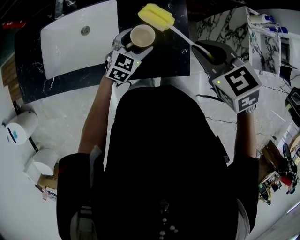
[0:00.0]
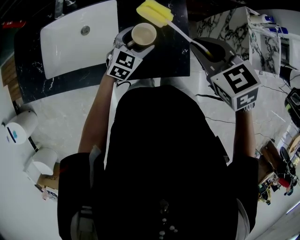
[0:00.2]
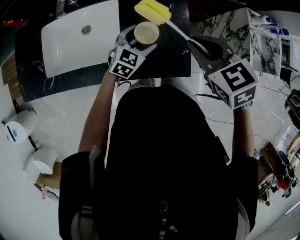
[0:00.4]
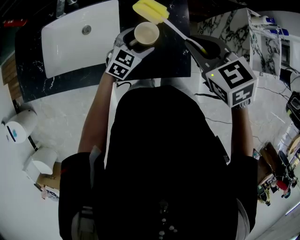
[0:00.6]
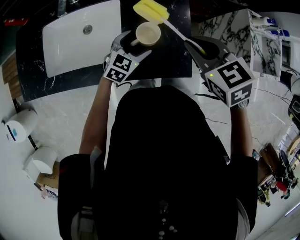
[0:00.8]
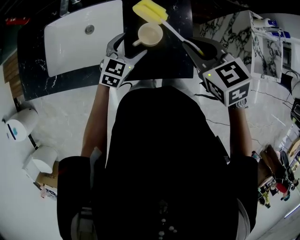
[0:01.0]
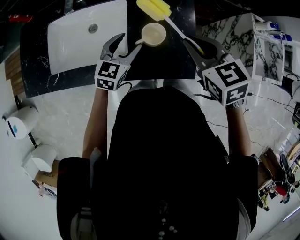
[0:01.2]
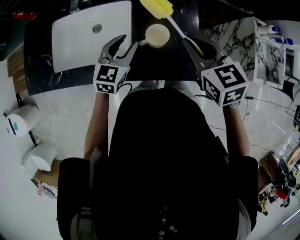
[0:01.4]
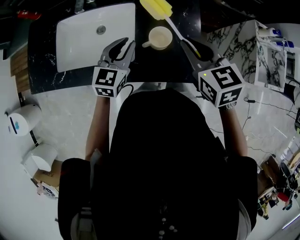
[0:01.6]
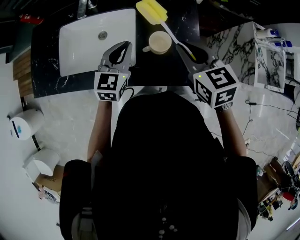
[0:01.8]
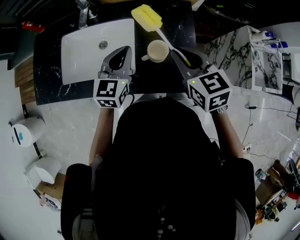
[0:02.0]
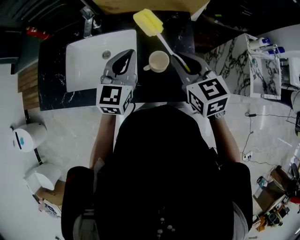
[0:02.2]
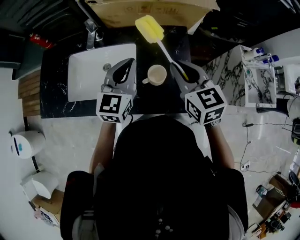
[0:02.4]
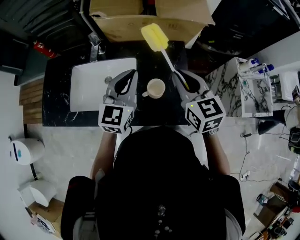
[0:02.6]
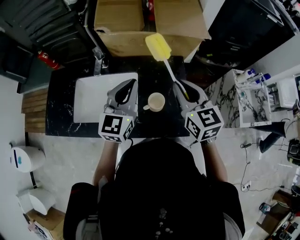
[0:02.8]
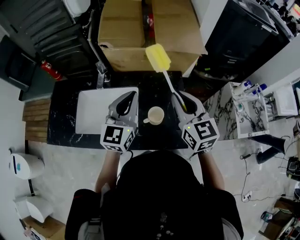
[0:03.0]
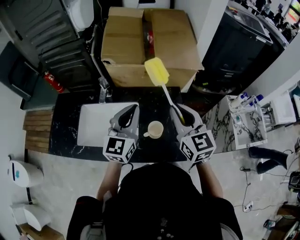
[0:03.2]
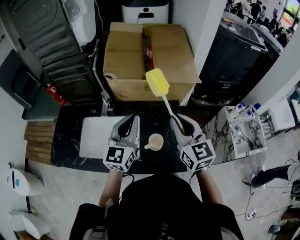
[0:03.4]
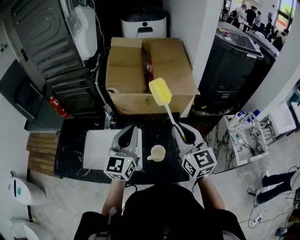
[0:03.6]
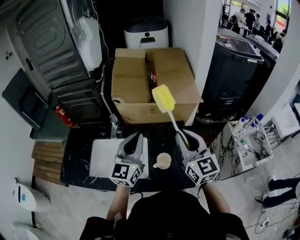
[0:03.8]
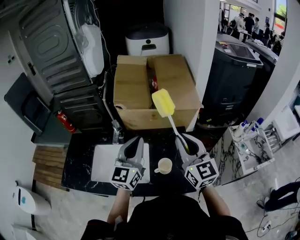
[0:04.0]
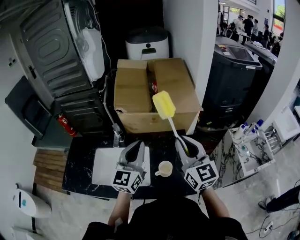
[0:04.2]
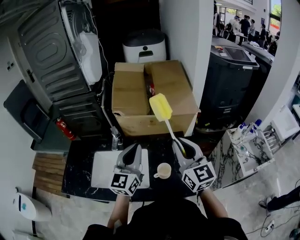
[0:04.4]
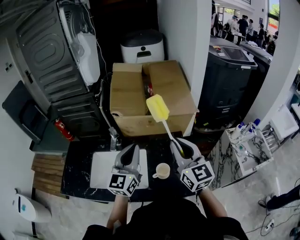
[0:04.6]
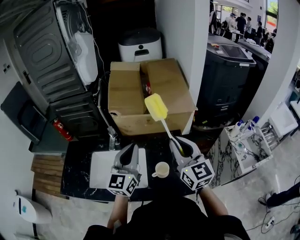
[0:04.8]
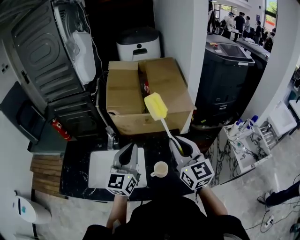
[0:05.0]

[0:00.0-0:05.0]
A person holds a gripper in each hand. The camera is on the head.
0:00.0 to 0:01.6: The left gripper heads to the left and upward, covering about 15 cm, swivels approximately 20 degrees, and closes up. Meanwhile the right gripper travels to the left by about 5 cm.
0:01.6 to 0:03.4: The two grippers go about 20 cm upward. The left gripper turns by approximately 30 degrees. The right gripper rotates about 30 degrees.
0:03.4 to 0:05.0: The grippers make only small movements.

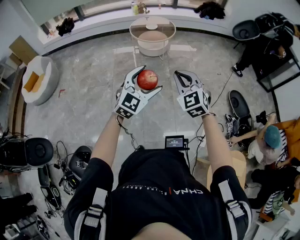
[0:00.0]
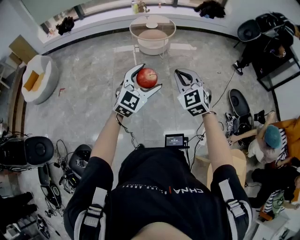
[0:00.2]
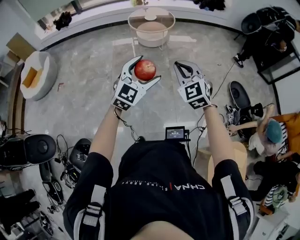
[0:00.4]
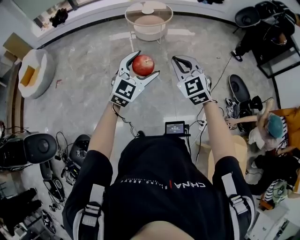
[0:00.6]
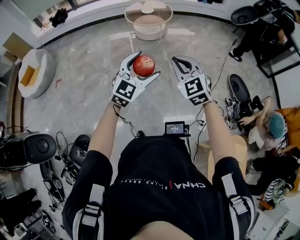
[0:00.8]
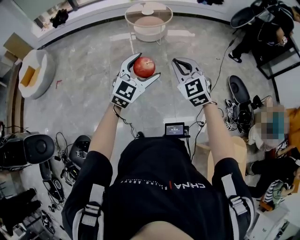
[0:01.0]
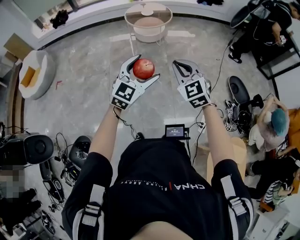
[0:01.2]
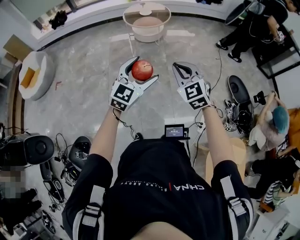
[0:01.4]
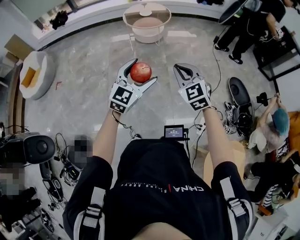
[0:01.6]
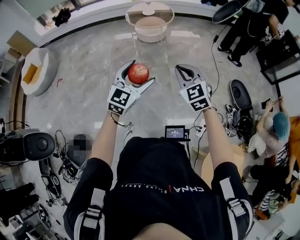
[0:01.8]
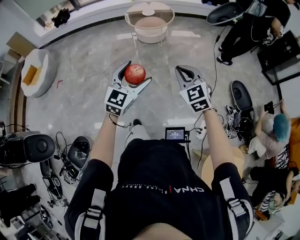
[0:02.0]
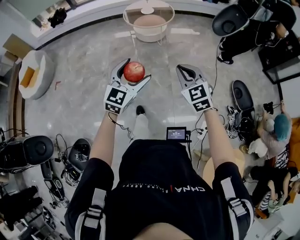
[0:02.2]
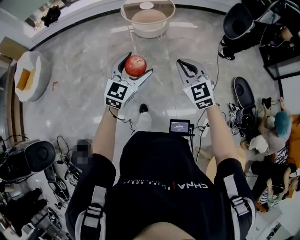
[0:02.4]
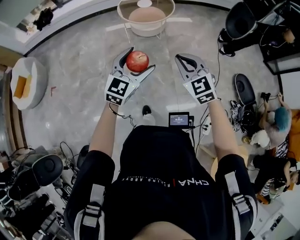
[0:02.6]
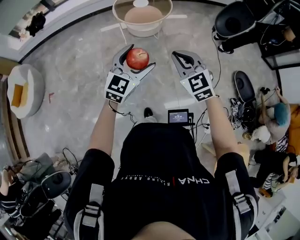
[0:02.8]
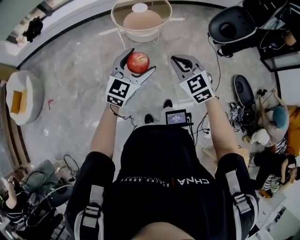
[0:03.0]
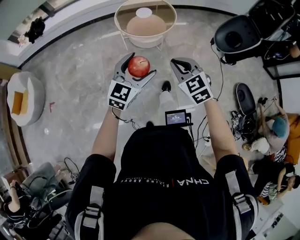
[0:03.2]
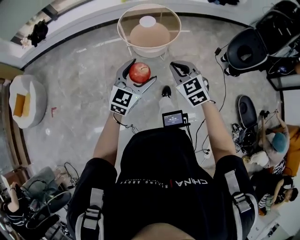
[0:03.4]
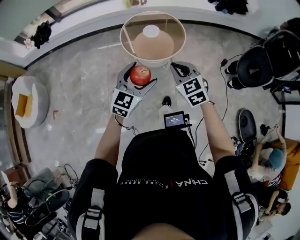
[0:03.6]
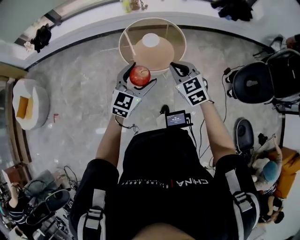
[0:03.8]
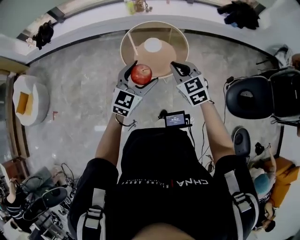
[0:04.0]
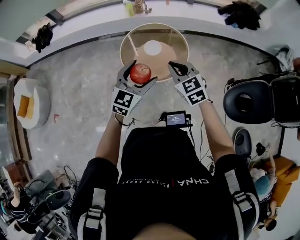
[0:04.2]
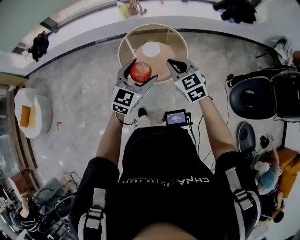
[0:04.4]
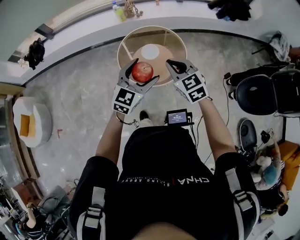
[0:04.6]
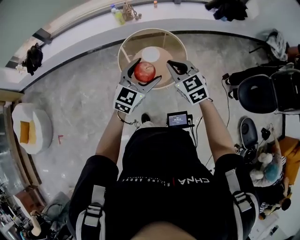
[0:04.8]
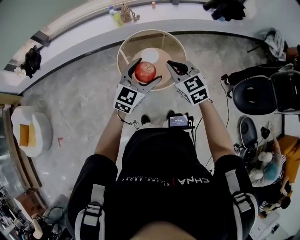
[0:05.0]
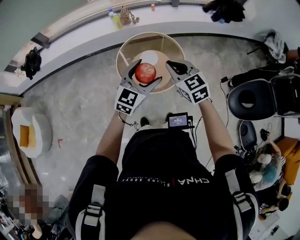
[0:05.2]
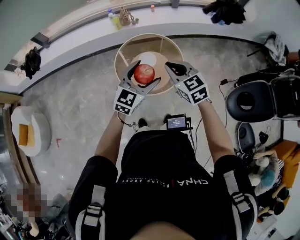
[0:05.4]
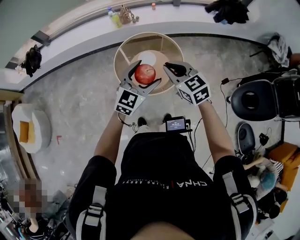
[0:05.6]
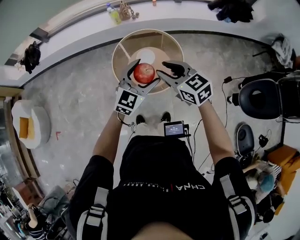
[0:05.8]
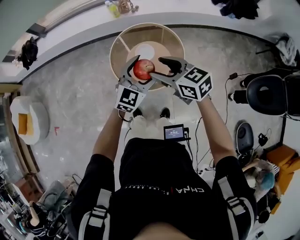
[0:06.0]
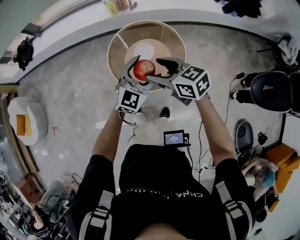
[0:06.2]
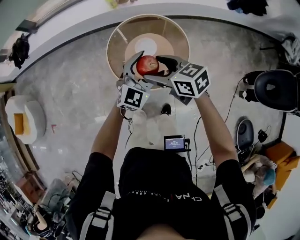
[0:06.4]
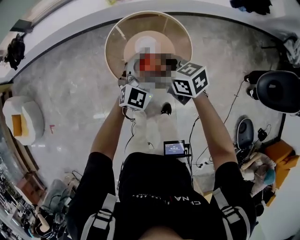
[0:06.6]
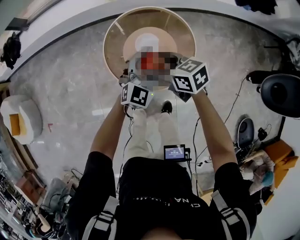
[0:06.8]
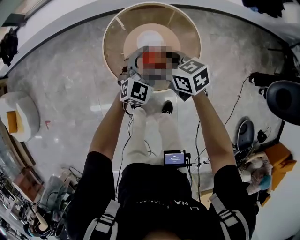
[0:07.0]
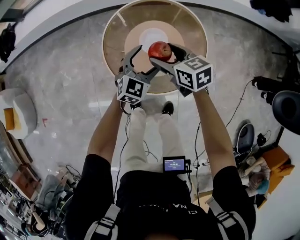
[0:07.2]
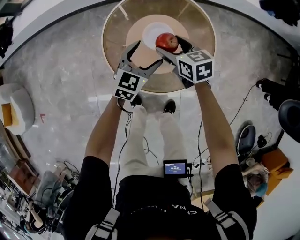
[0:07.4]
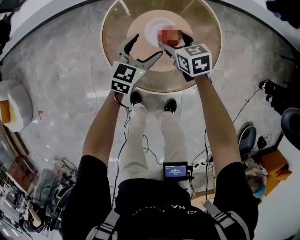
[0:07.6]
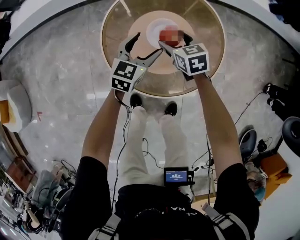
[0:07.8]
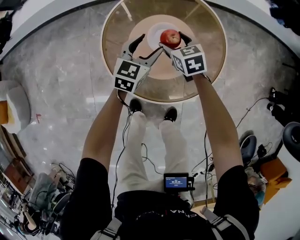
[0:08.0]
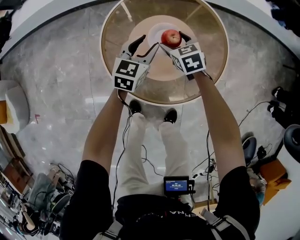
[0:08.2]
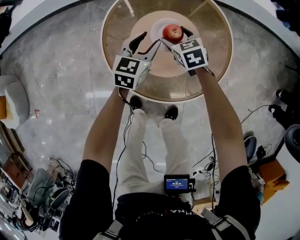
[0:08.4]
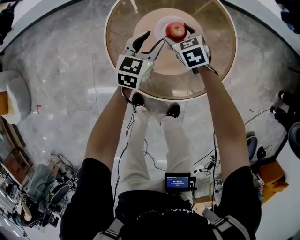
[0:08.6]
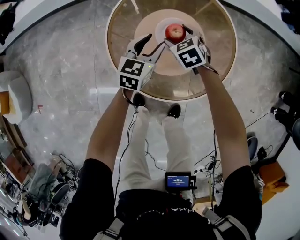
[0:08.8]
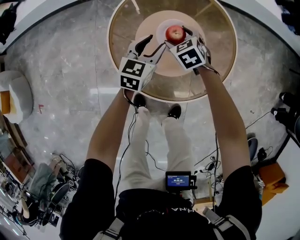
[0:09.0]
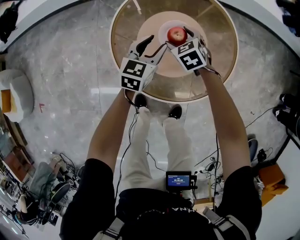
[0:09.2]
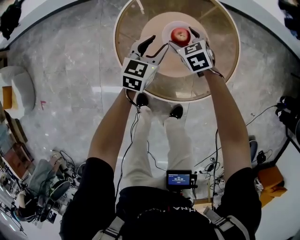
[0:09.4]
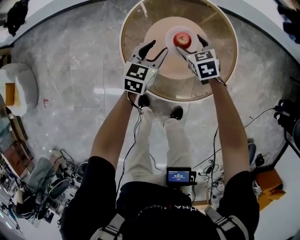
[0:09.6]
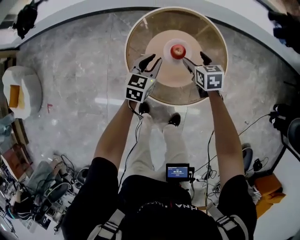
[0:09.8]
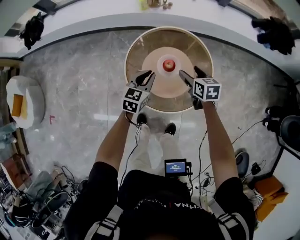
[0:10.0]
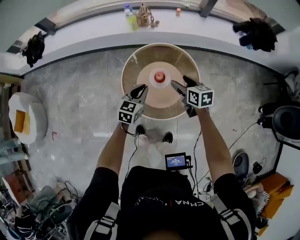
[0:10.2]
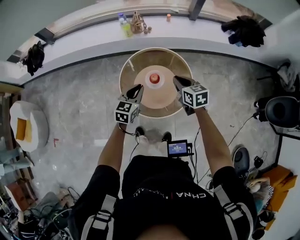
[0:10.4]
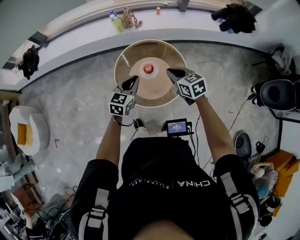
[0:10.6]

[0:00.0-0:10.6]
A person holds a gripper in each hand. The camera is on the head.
0:00.0 to 0:01.6: The left gripper moves approximately 5 cm. Meanwhile the right gripper moves to the right, about 5 cm.
0:01.6 to 0:03.0: Both grippers are carried forward and to the left, roughly 40 cm.
0:03.0 to 0:04.6: The pair of grippers is taken forward, approximately 60 cm.
0:04.6 to 0:06.0: The right gripper travels forward by roughly 10 cm, swivels approximately 30 degrees, and opens its fingers; the left gripper heads forward and to the right, covering about 15 cm.
0:06.0 to 0:07.6: Both grippers move downward and forward, about 50 cm. The left gripper swivels about 20 degrees, while the right gripper turns by some 20 degrees.
0:07.6 to 0:09.0: The left gripper travels downward by some 5 cm, and closes, while the right gripper is displaced downward by approximately 10 cm, and turns by roughly 30 degrees.
0:09.0 to 0:10.6: Both grippers travel together upward, about 40 cm. The left gripper closes its fingers. The right gripper rotates some 30 degrees, and closes.

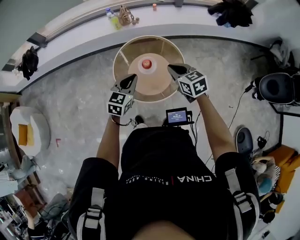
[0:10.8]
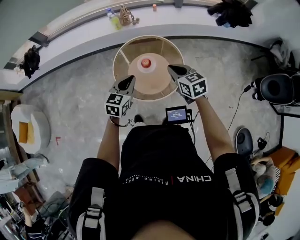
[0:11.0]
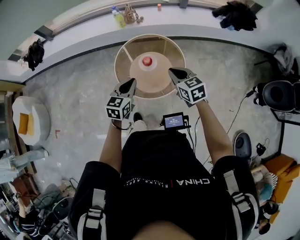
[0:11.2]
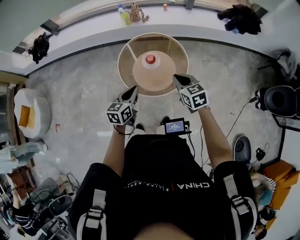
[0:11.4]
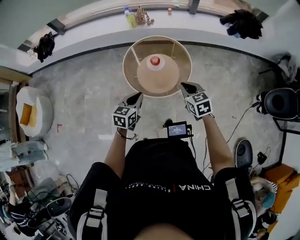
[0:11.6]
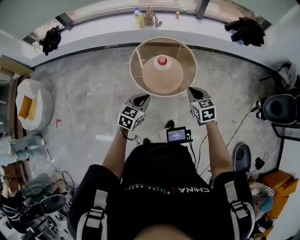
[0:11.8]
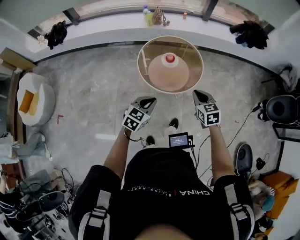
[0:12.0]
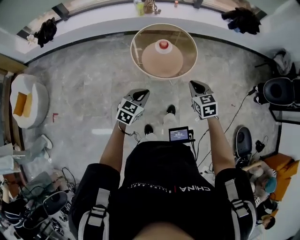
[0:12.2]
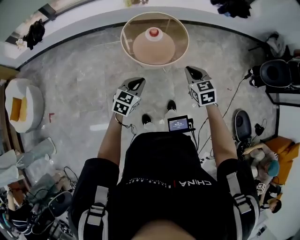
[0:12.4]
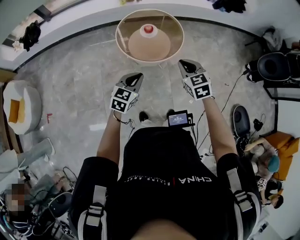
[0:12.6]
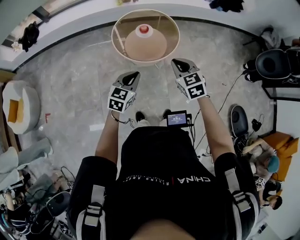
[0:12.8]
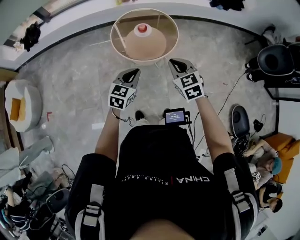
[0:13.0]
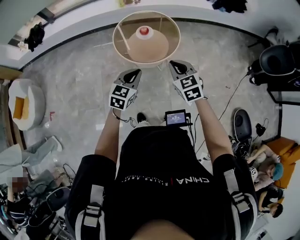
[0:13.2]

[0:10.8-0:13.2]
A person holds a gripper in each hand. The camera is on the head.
0:10.8 to 0:12.0: Both grippers travel together backward, some 30 cm.
0:12.0 to 0:13.2: The right gripper is displaced backward by approximately 5 cm, while the left gripper shifts about 5 cm to the right.

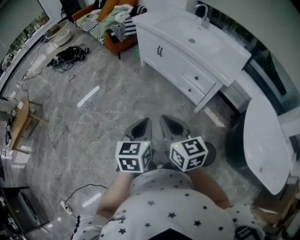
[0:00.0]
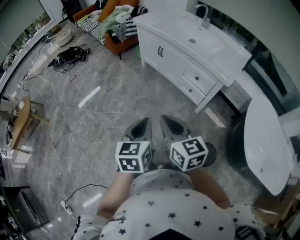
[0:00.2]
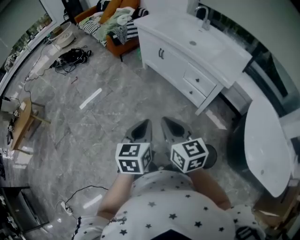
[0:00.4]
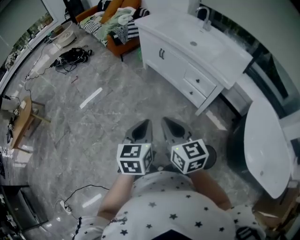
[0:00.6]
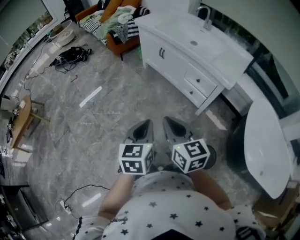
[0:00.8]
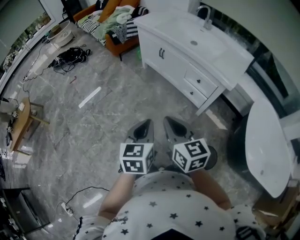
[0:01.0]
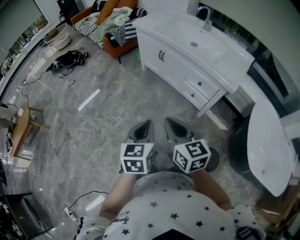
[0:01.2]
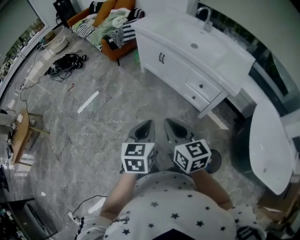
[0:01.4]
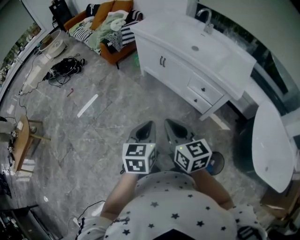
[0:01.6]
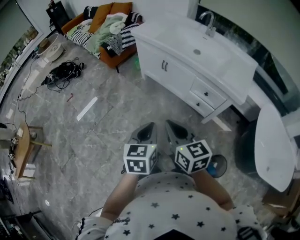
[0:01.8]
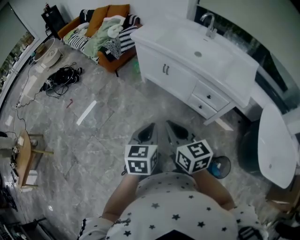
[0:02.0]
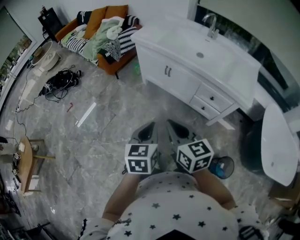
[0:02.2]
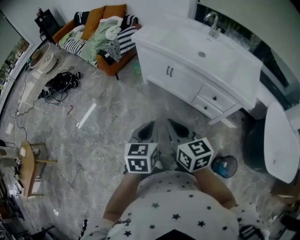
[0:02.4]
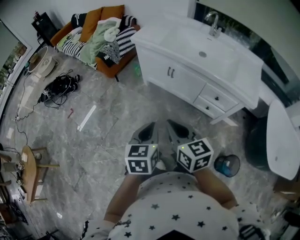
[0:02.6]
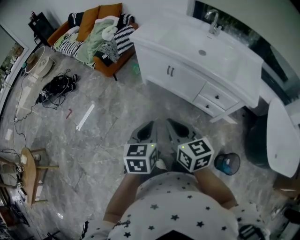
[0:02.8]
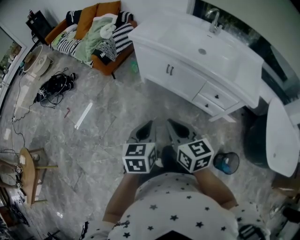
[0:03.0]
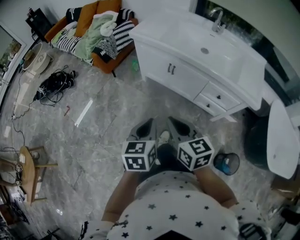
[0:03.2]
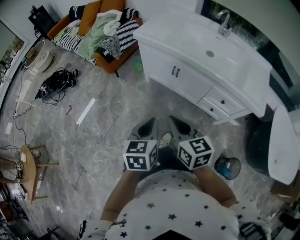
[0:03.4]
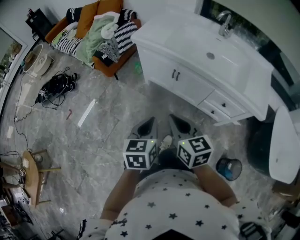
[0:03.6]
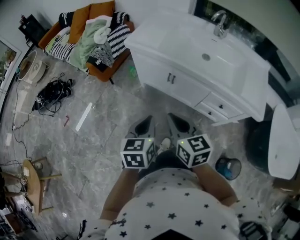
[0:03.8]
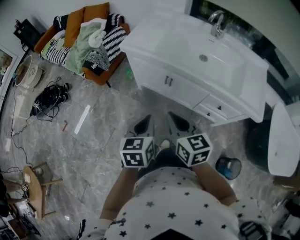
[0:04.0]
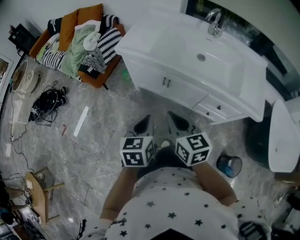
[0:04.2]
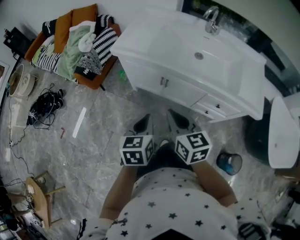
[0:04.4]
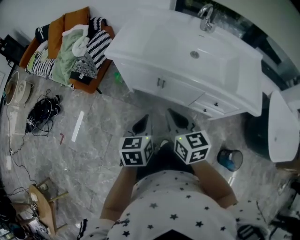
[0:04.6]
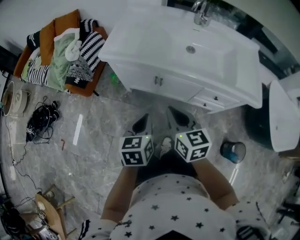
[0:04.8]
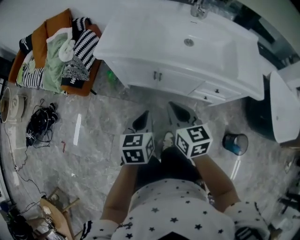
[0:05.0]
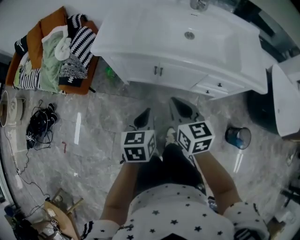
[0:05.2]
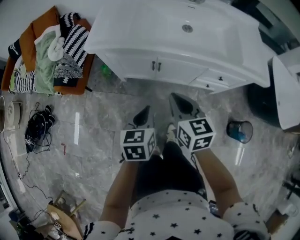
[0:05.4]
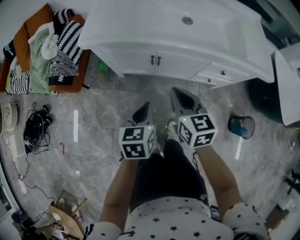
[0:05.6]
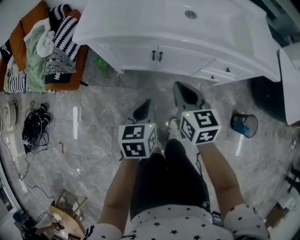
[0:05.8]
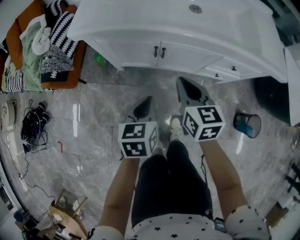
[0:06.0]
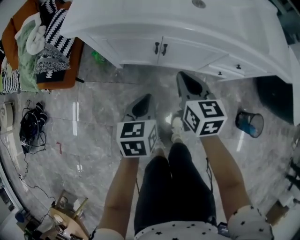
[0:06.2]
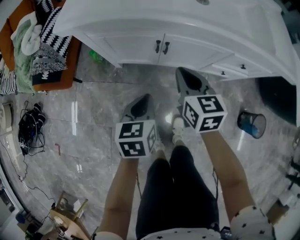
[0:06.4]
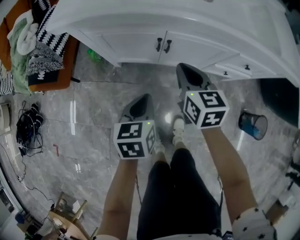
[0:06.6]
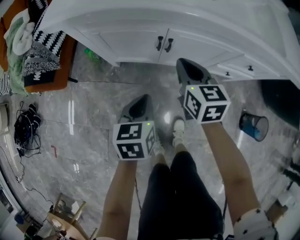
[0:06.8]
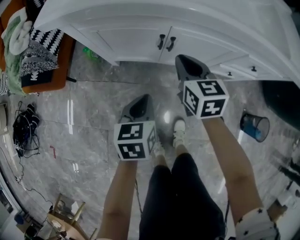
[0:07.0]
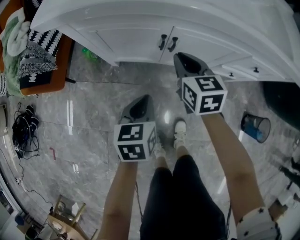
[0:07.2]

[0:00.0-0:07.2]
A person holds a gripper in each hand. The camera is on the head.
0:00.0 to 0:01.4: The grippers both shift forward by approximately 10 cm.
0:01.4 to 0:02.8: The grippers both shift forward and to the left by about 25 cm.
0:02.8 to 0:04.4: The two grippers go approximately 25 cm forward.
0:04.4 to 0:05.8: The grippers both shift downward and forward by about 15 cm. The right gripper rotates roughly 20 degrees.
0:05.8 to 0:07.2: The right gripper shifts roughly 25 cm downward and forward; the left gripper goes about 20 cm downward.
